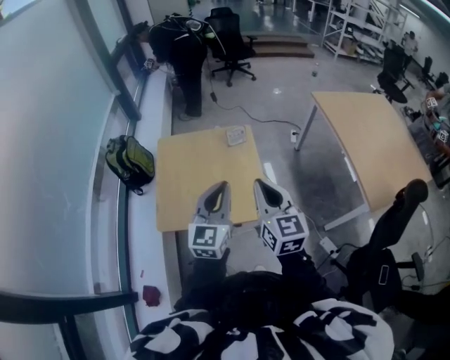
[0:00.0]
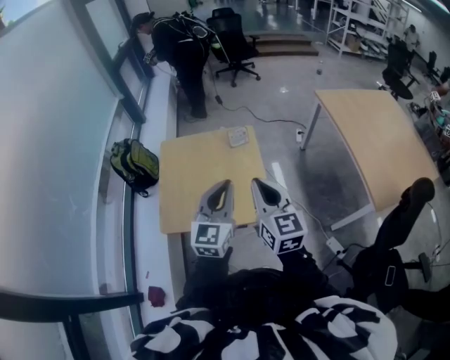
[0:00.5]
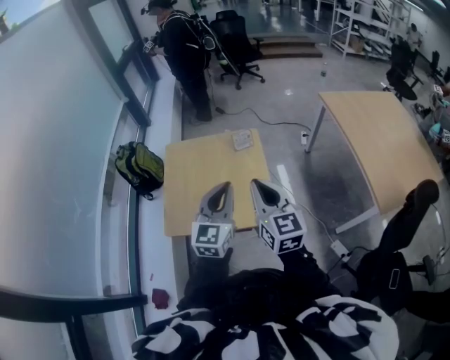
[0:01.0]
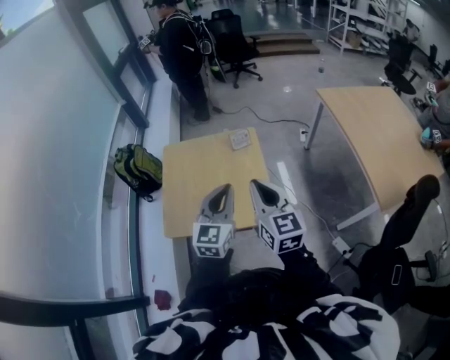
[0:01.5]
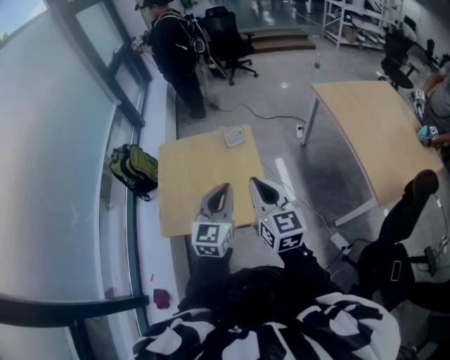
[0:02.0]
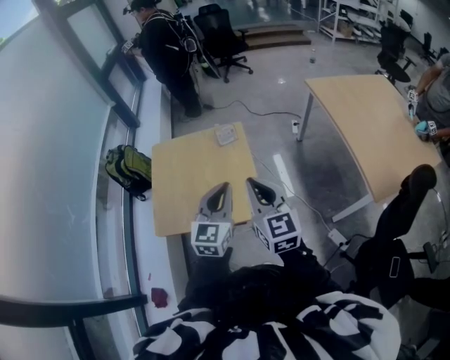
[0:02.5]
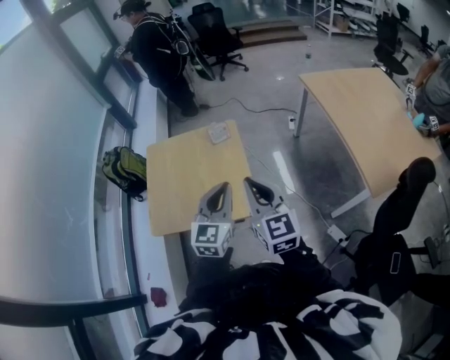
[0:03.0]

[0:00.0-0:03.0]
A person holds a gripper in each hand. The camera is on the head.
0.0 to 1.5 s: The grippers move only a little.
1.5 to 3.0 s: Both grippers move to the right, some 10 cm.

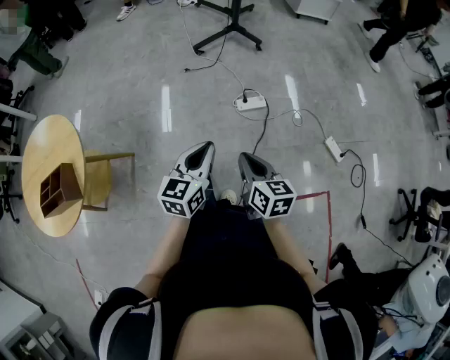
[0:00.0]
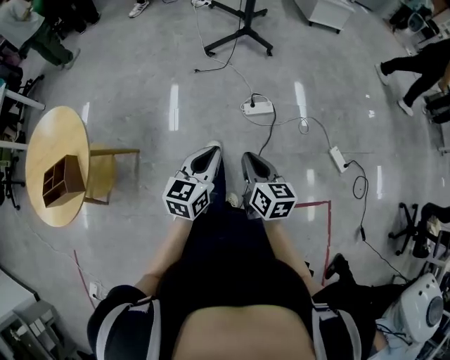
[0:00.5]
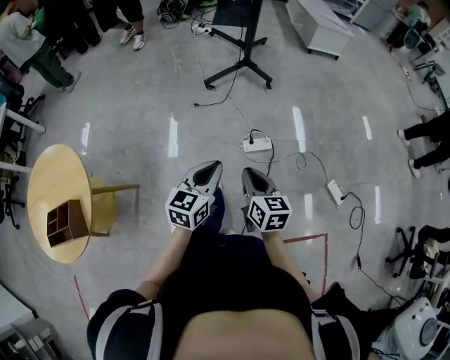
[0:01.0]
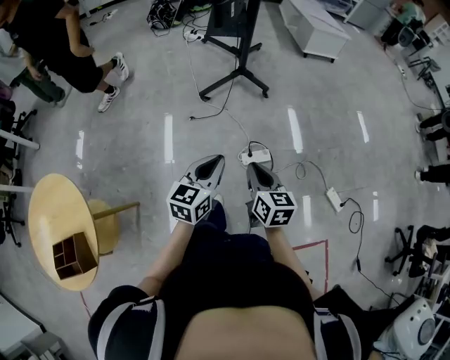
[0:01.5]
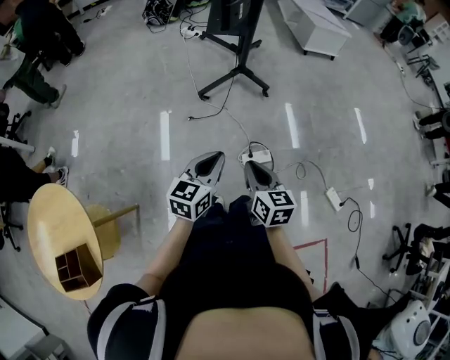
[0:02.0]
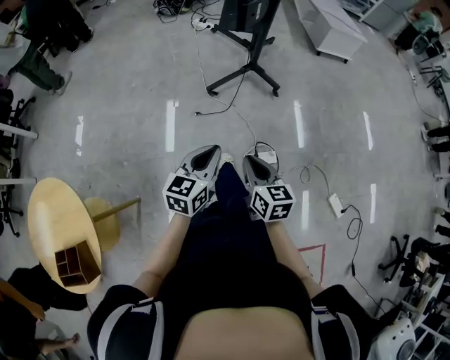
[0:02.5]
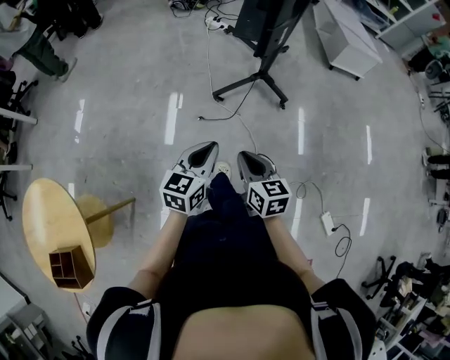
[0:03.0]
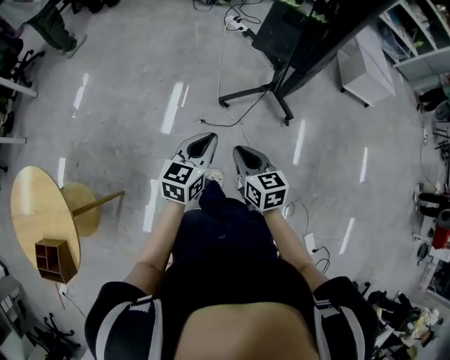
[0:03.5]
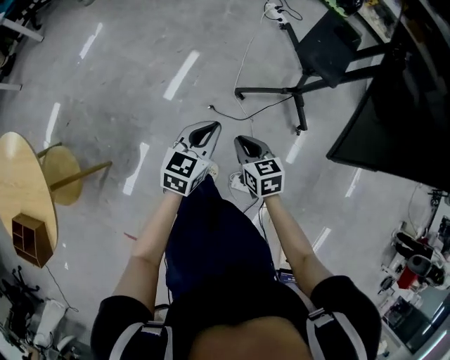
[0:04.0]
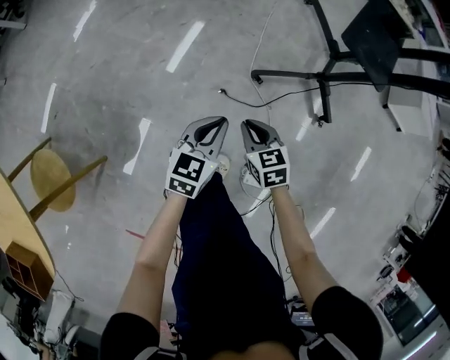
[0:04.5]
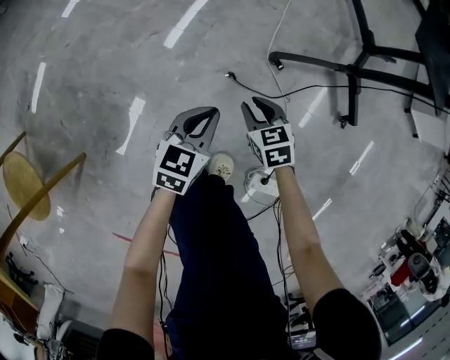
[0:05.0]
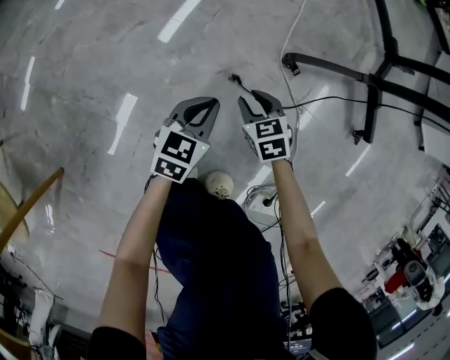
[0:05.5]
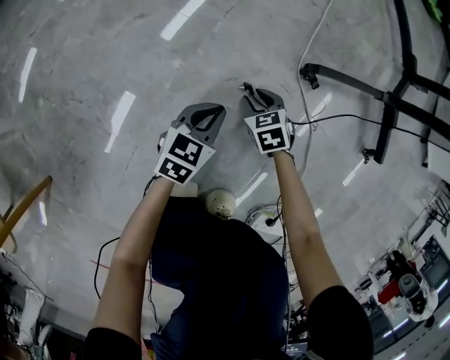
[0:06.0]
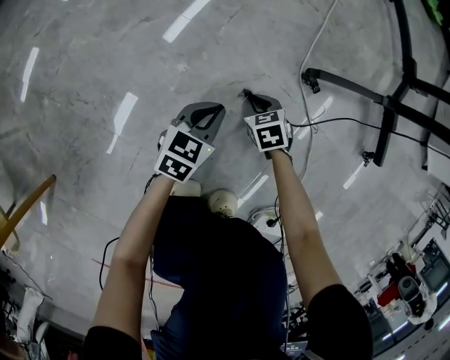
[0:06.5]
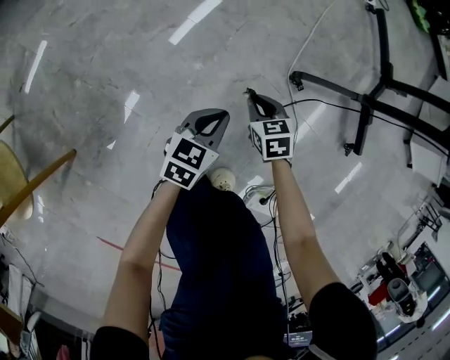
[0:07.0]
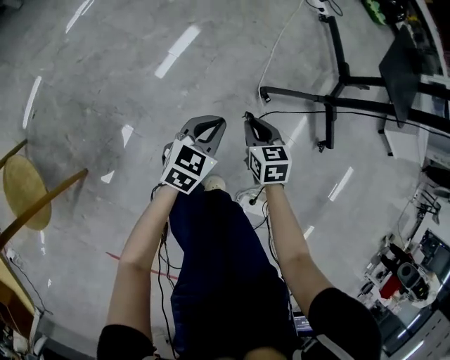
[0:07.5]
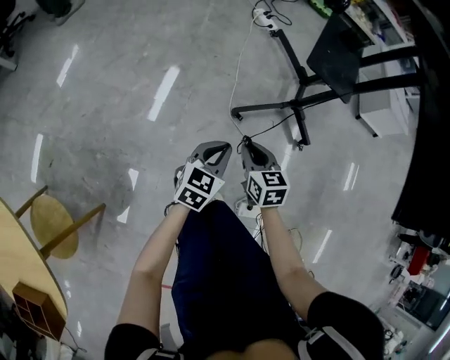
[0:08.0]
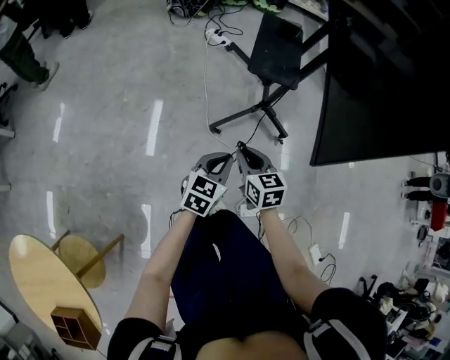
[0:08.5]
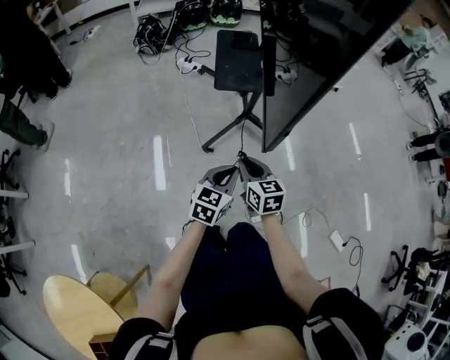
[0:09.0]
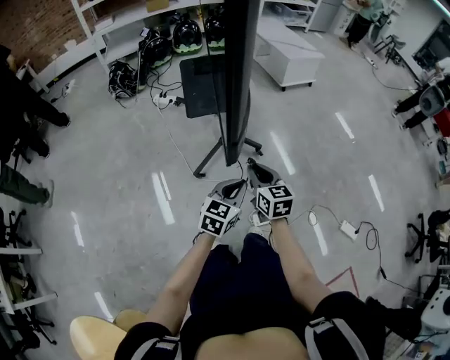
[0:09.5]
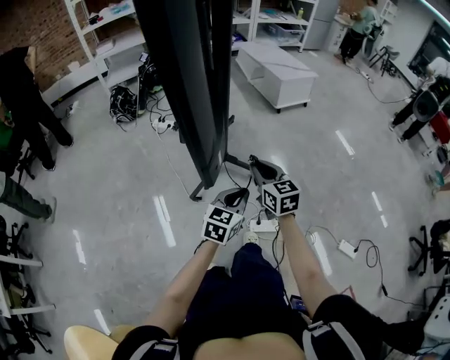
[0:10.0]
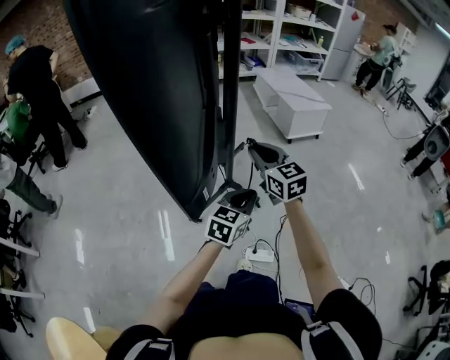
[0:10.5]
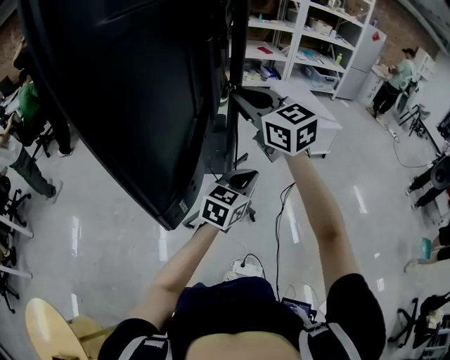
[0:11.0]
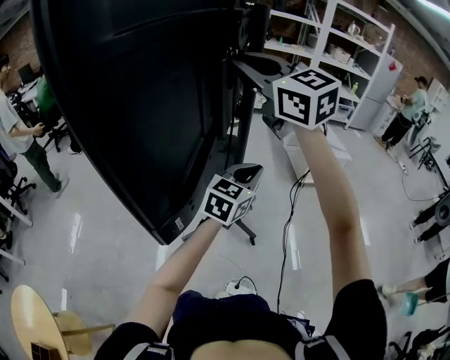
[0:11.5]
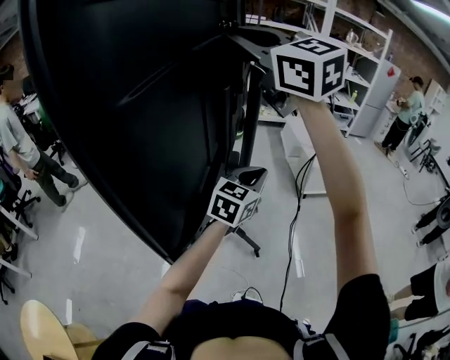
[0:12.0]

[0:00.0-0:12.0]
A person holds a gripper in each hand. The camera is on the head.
0.0 to 2.0 s: The two grippers go roughly 35 cm forward.
2.0 to 4.0 s: The left gripper ends up some 40 cm from where it was, and rotates about 30 degrees. Meanwhile the right gripper moves roughly 40 cm, and swivels roughly 50 degrees.
4.0 to 6.0 s: The two grippers go about 70 cm downward. The right gripper swivels approximately 30 degrees, and opens up.
6.0 to 8.0 s: Both grippers move upward, approximately 60 cm. The right gripper turns by some 40 degrees, and closes.
8.0 to 10.0 s: The right gripper goes about 35 cm upward, and turns by about 40 degrees. Meanwhile the left gripper moves roughly 40 cm, and changes its angle by approximately 30 degrees.
10.0 to 12.0 s: The right gripper moves upward, some 60 cm, and swivels roughly 60 degrees. Meanwhile the left gripper heads upward, covering approximately 30 cm, and turns by about 20 degrees.

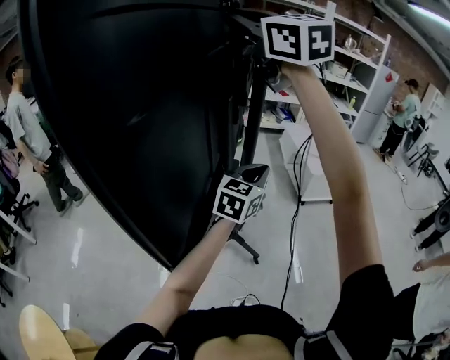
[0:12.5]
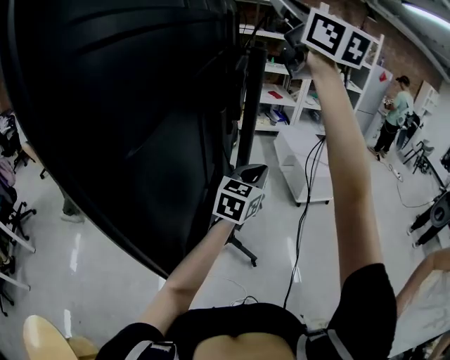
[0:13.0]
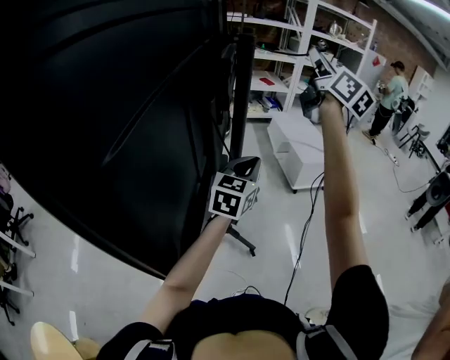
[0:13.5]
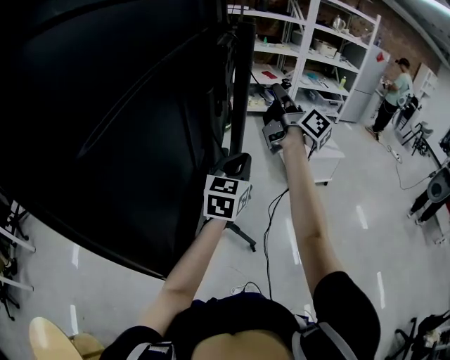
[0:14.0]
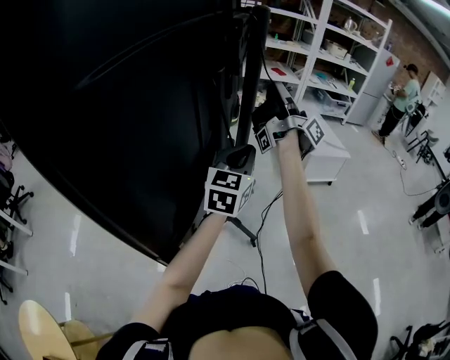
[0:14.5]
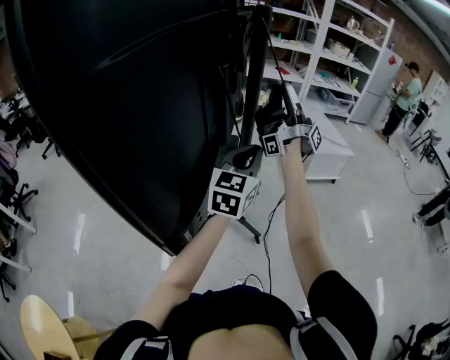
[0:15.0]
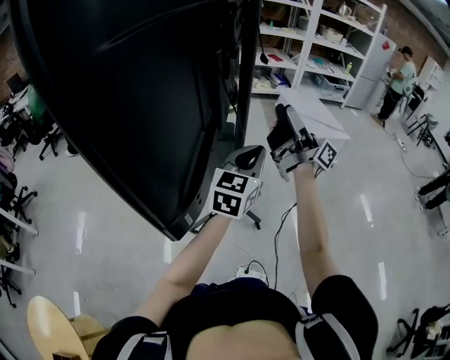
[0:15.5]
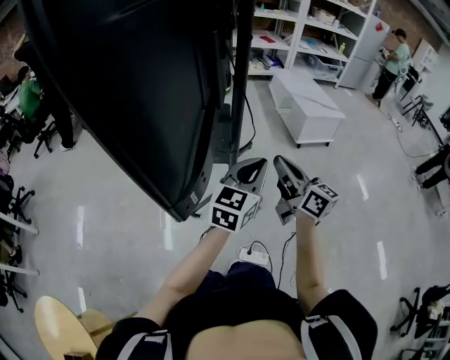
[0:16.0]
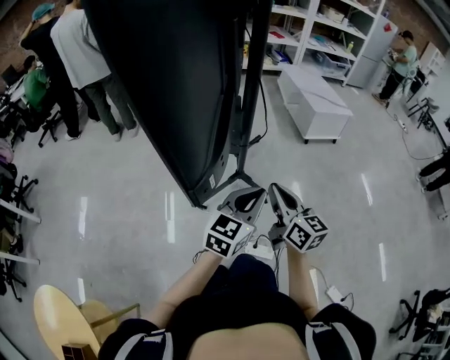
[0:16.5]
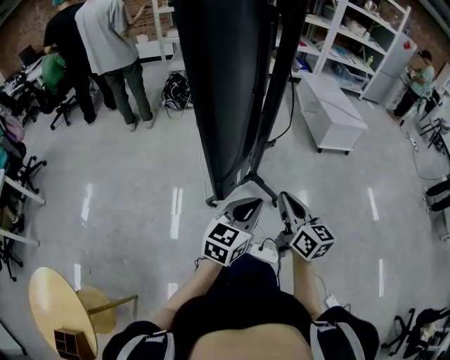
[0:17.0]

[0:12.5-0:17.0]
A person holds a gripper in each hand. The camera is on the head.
12.5 to 14.5 s: The right gripper is displaced downward and to the right by approximately 30 cm, and rolls clockwise, seen from behind, by approximately 90 degrees.
14.5 to 17.0 s: The grippers both shift backward and downward by approximately 40 cm. The right gripper tilts its fingers some 50 degrees downward, and opens, then closes again.

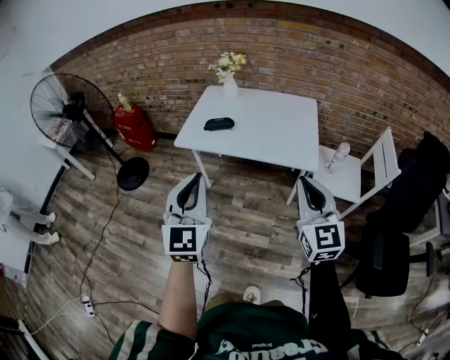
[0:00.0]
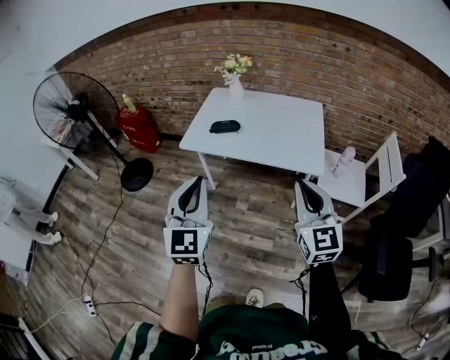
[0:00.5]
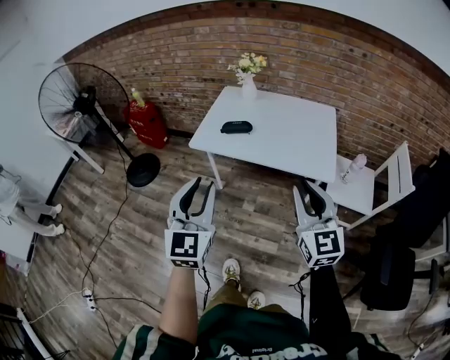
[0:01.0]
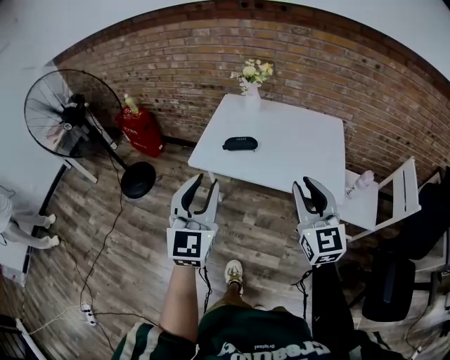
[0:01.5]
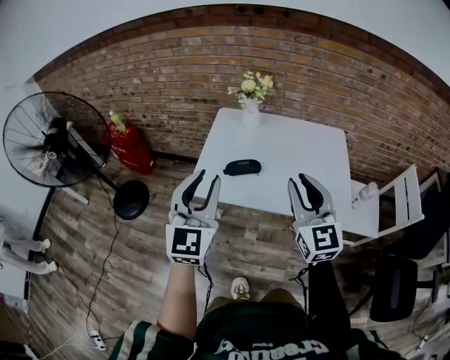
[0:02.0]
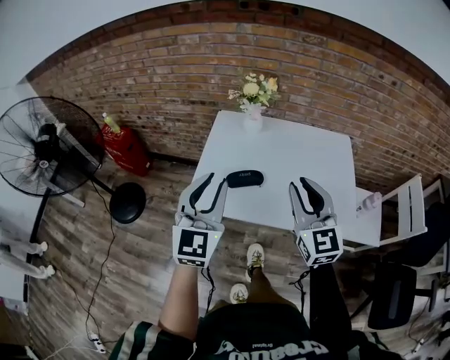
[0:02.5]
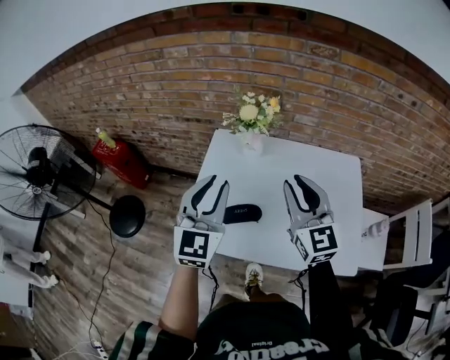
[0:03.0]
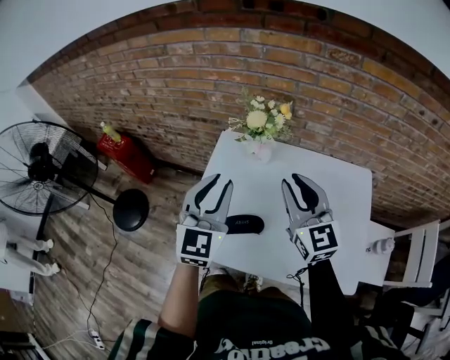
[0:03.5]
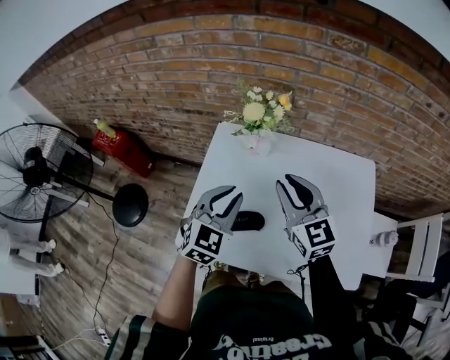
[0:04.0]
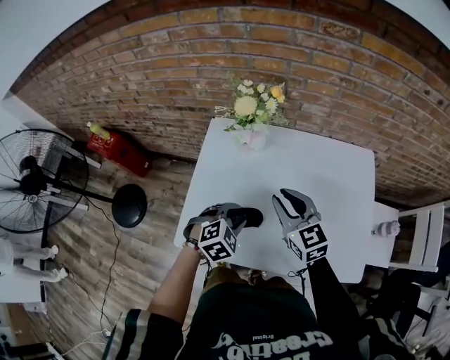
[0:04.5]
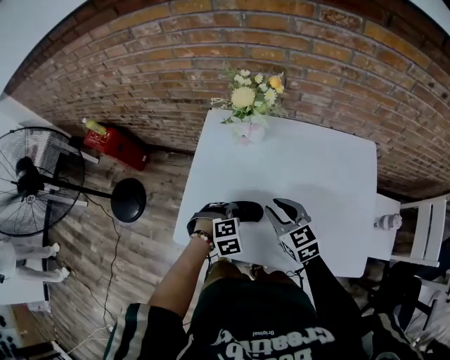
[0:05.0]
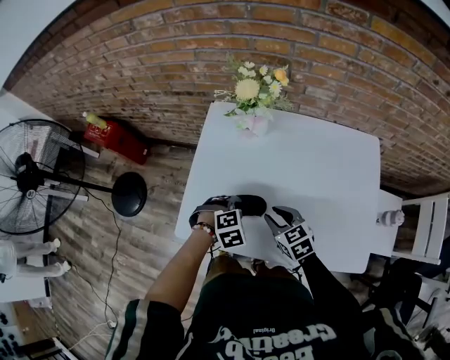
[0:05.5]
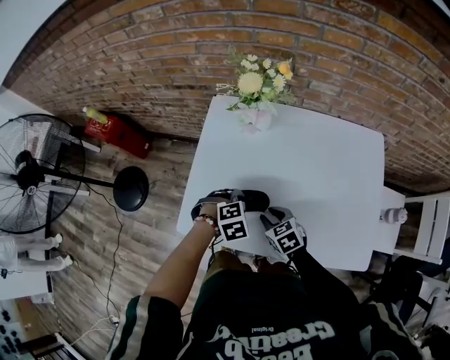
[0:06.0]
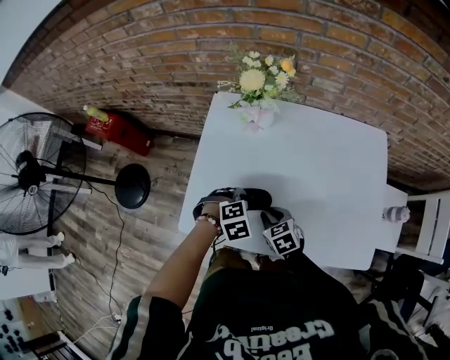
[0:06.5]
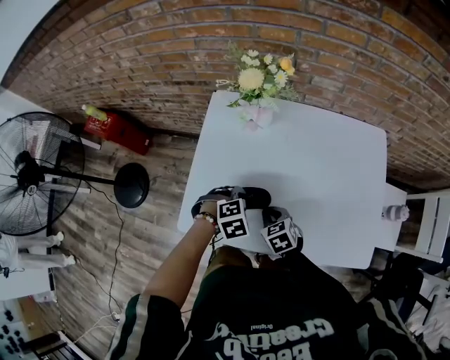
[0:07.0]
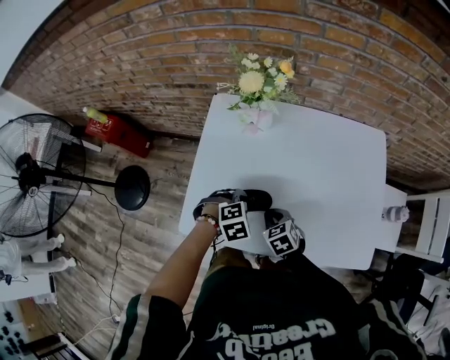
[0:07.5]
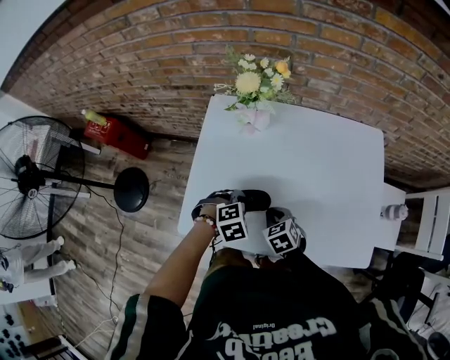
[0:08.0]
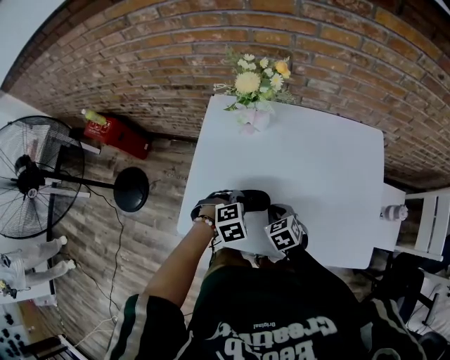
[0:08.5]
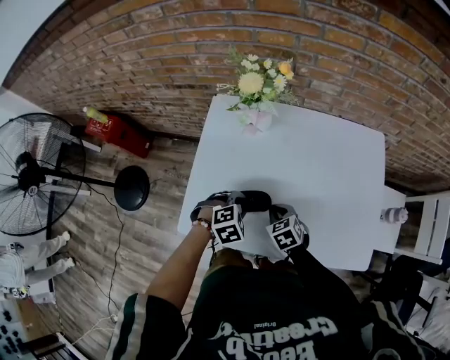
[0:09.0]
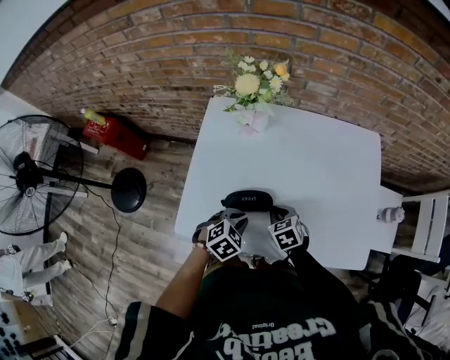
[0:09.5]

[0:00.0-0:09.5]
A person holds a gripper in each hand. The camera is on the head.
0.0 to 2.0 s: The left gripper goes approximately 30 cm forward, and opens up, while the right gripper moves forward and to the left, about 35 cm.
2.0 to 4.0 s: The left gripper travels forward and downward by approximately 35 cm, and turns by approximately 30 degrees, while the right gripper moves forward, some 35 cm.
4.0 to 5.5 s: Both grippers travel together downward, approximately 25 cm. The left gripper angles its fingers downward, by some 50 degrees; the right gripper angles its fingers downward, by about 30 degrees.
5.5 to 7.5 s: The right gripper moves downward, roughly 5 cm, and closes.
7.5 to 9.5 s: The left gripper turns by about 20 degrees.
